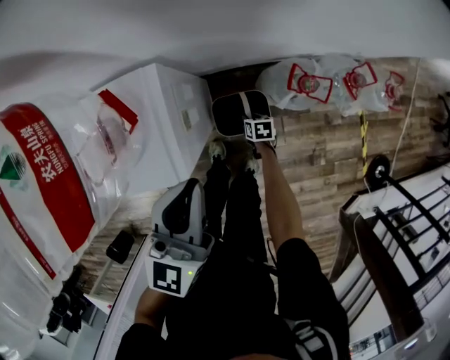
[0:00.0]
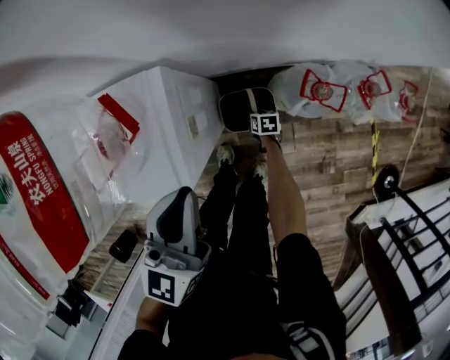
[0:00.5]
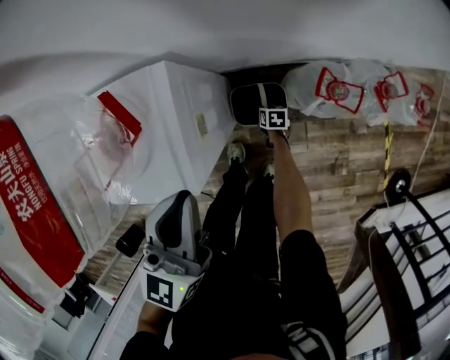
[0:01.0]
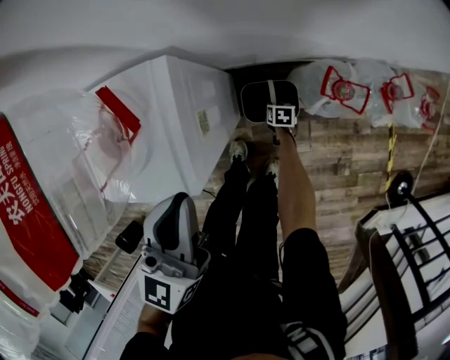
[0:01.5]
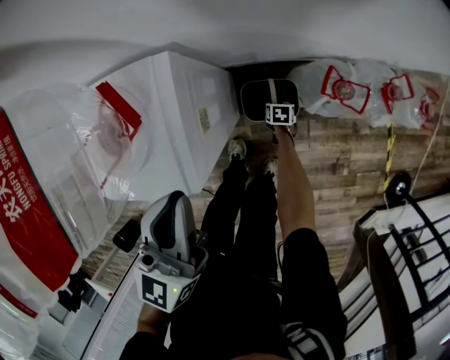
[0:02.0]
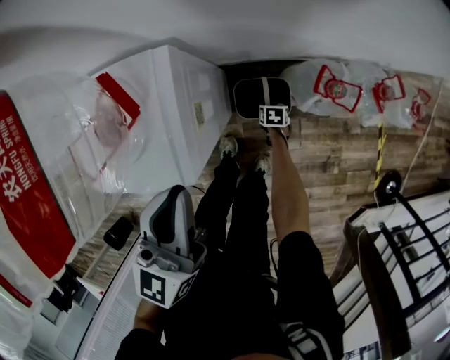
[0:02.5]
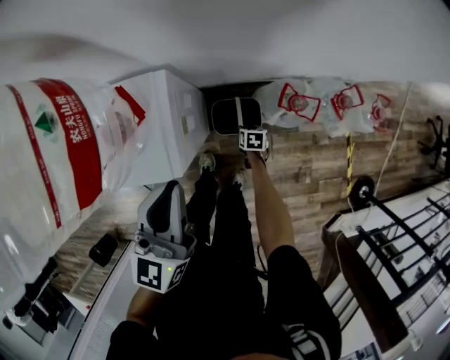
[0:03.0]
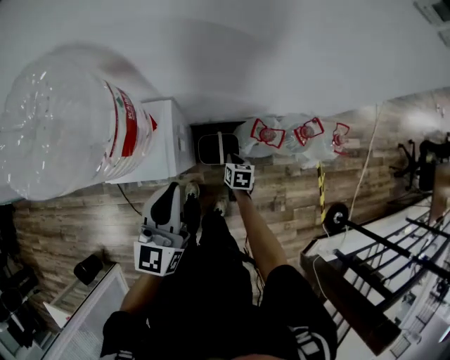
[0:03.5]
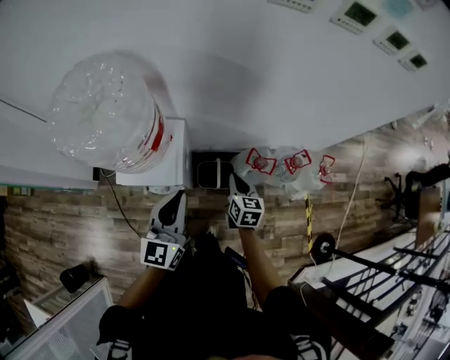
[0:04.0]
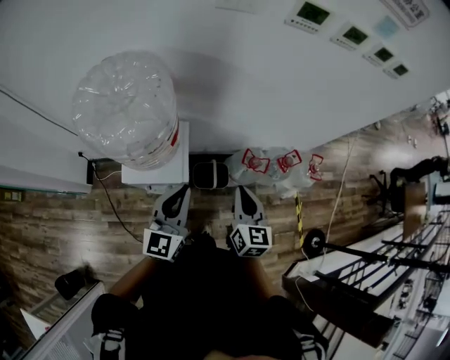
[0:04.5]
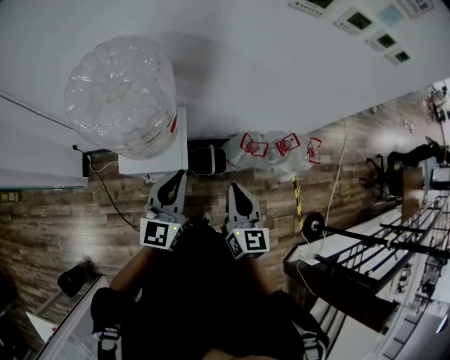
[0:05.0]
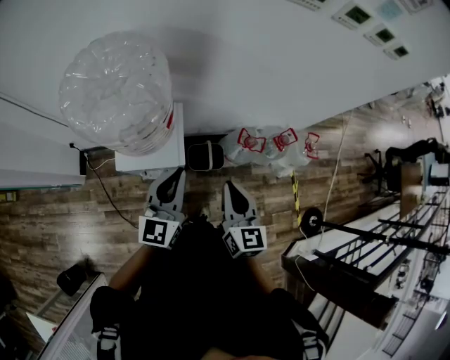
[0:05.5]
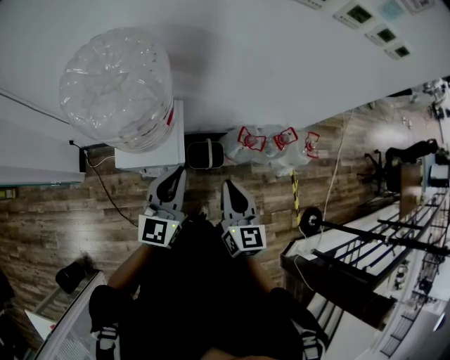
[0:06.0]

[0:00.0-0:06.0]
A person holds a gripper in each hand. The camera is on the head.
0:00.0 to 0:02.0: The right gripper goes approximately 10 cm downward. The left gripper moves some 5 cm.
0:02.0 to 0:04.0: The left gripper moves upward and backward, roughly 20 cm. The right gripper travels upward by some 60 cm, tips its fingers upward by about 40 degrees, and closes.
0:04.0 to 0:06.0: The right gripper moves upward, backward and to the left, some 25 cm, while the left gripper shifts by approximately 5 cm.

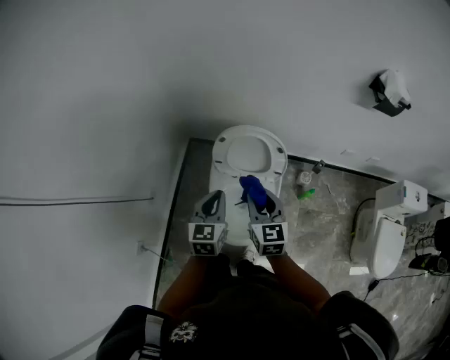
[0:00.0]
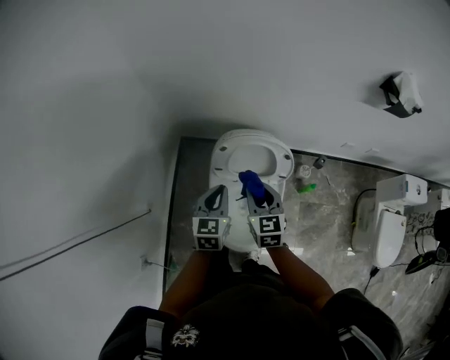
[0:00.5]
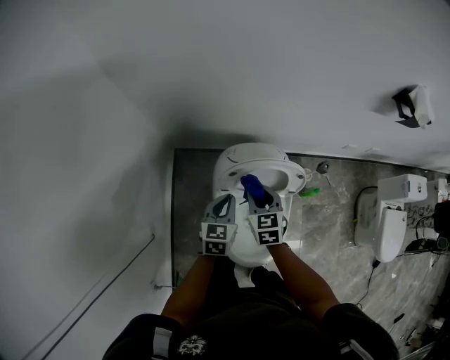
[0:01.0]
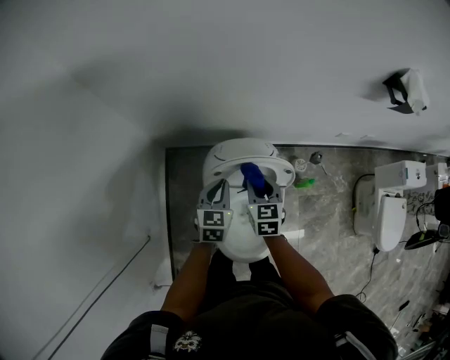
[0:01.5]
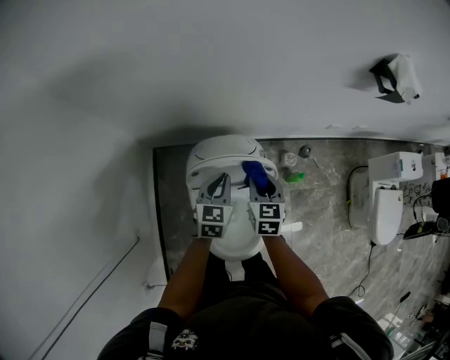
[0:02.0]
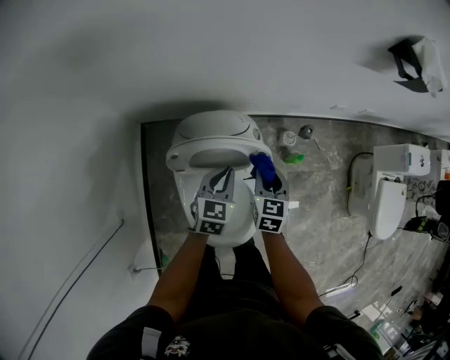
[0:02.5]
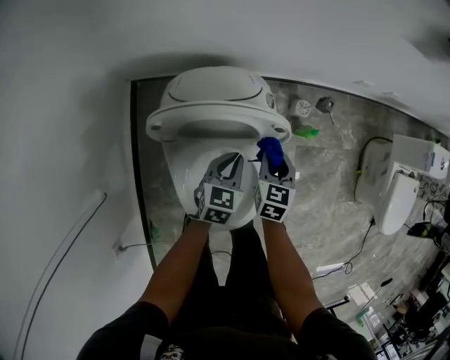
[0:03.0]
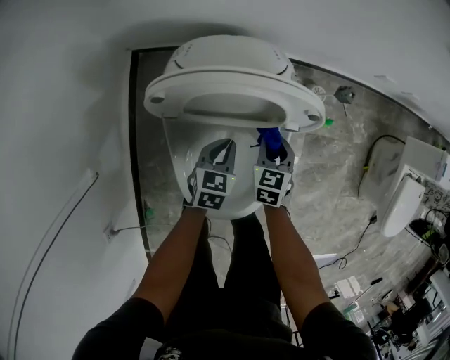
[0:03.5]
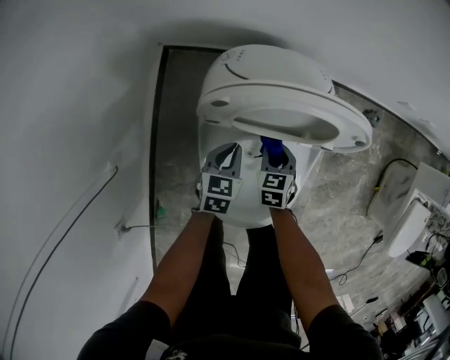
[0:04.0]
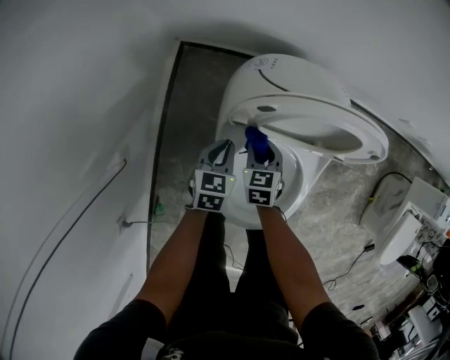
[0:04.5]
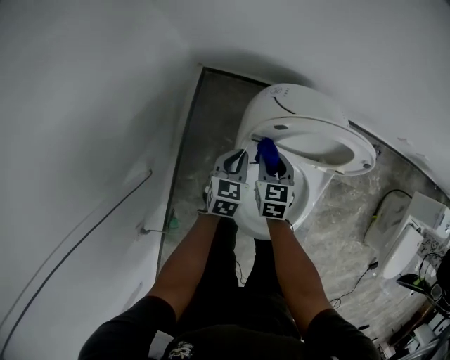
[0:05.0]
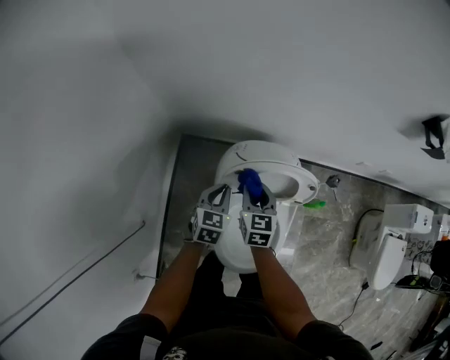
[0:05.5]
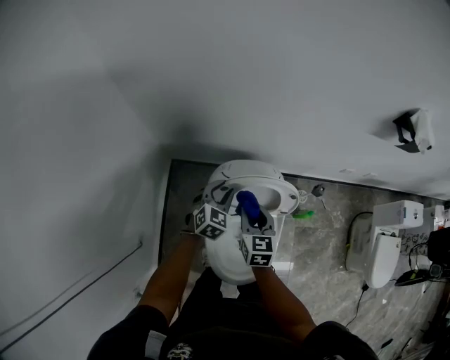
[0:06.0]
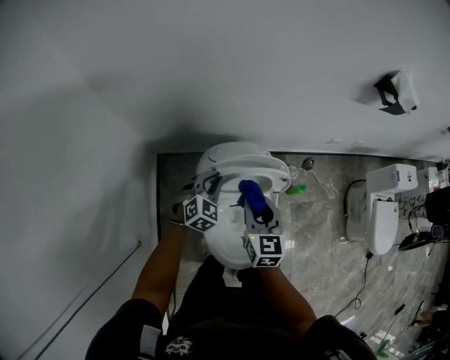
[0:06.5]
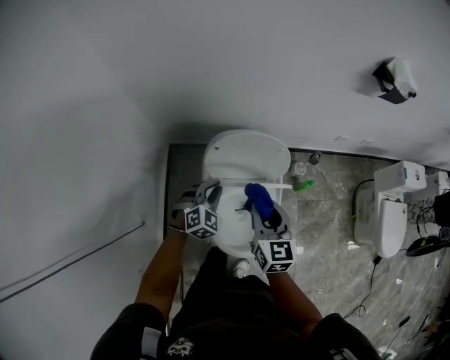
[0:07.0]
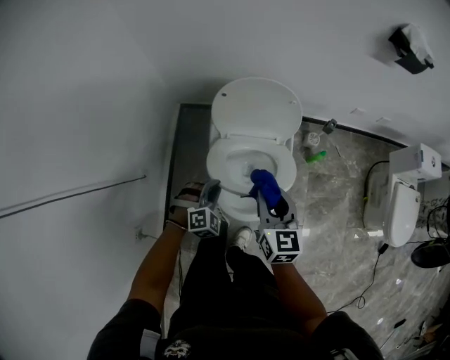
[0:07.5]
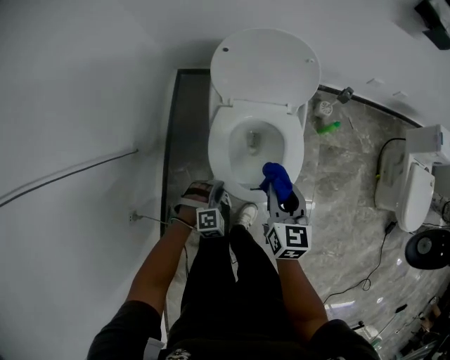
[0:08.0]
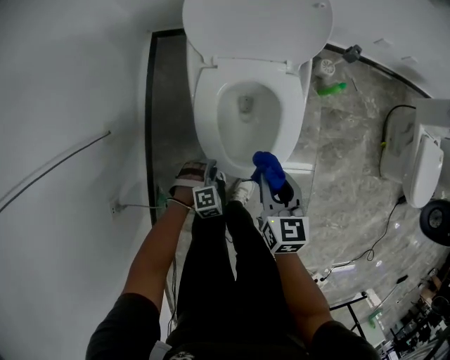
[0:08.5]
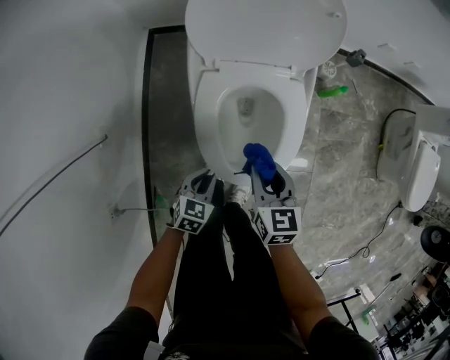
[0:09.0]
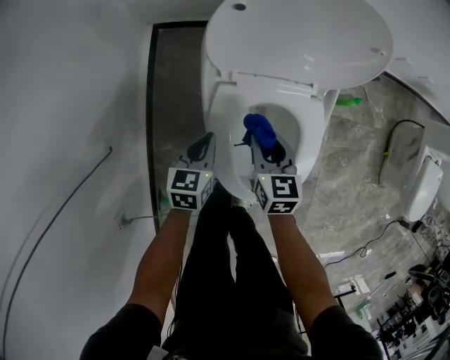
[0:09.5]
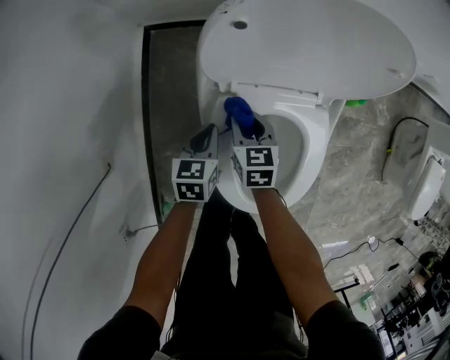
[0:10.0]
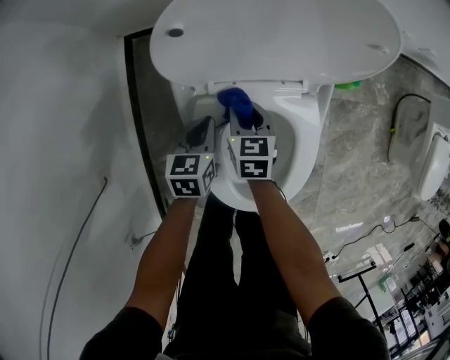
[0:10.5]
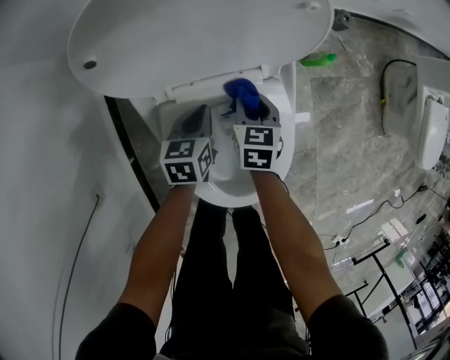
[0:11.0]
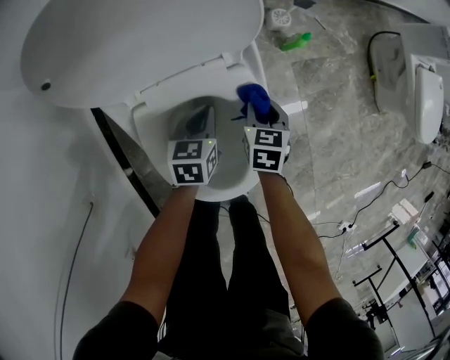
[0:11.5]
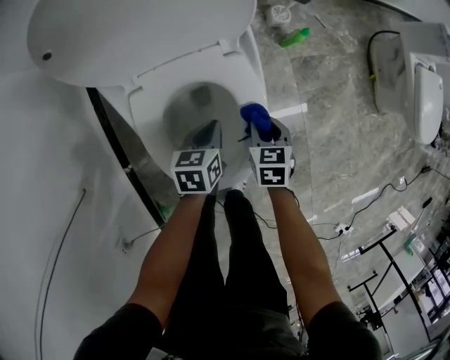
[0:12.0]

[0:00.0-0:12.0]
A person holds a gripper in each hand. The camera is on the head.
0:00.0 to 0:02.0: The two grippers go roughly 25 cm forward and downward. The left gripper swivels approximately 20 degrees, while the right gripper rotates about 30 degrees.
0:02.0 to 0:04.0: The grippers both shift downward by roughly 30 cm. The left gripper changes its angle by roughly 20 degrees. The right gripper changes its angle by approximately 20 degrees.
0:04.0 to 0:06.0: The left gripper goes about 25 cm upward and forward, rotates approximately 40 degrees, and opens. The right gripper is displaced upward by roughly 35 cm, and changes its angle by roughly 30 degrees.
0:06.0 to 0:08.0: The right gripper travels backward by some 30 cm, while the left gripper goes about 50 cm backward and downward, and twists roughly 40 degrees clockwise, seen from behind.
0:08.0 to 0:10.0: The right gripper moves downward, forward and to the left, approximately 40 cm. Meanwhile the left gripper travels forward by some 25 cm, twists some 80 degrees counterclockwise, seen from behind, and closes up.
0:10.0 to 0:12.0: The right gripper moves approximately 30 cm, and changes its angle by about 20 degrees. Meanwhile the left gripper changes place by about 25 cm.

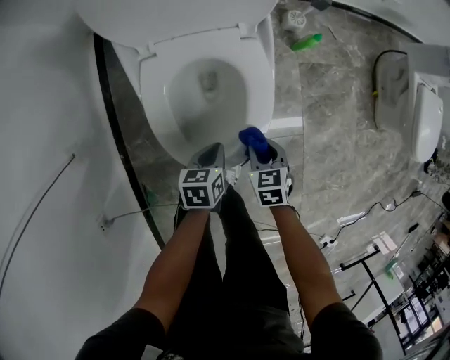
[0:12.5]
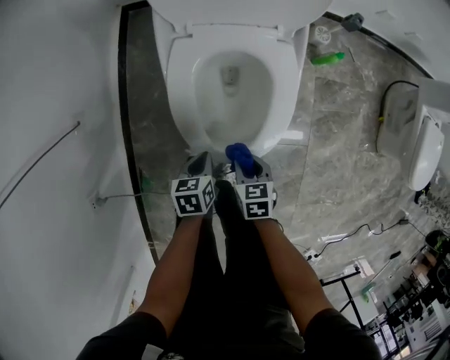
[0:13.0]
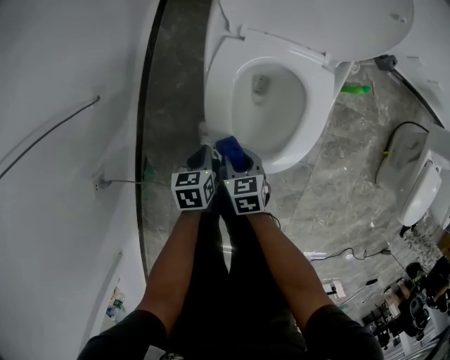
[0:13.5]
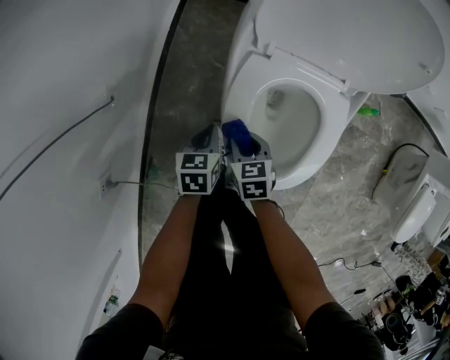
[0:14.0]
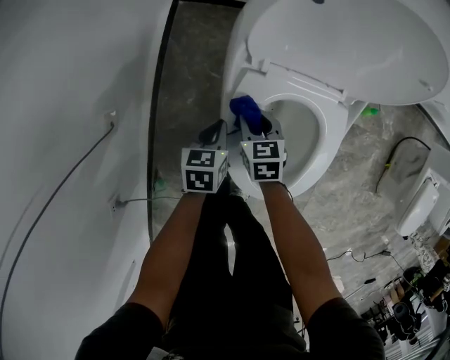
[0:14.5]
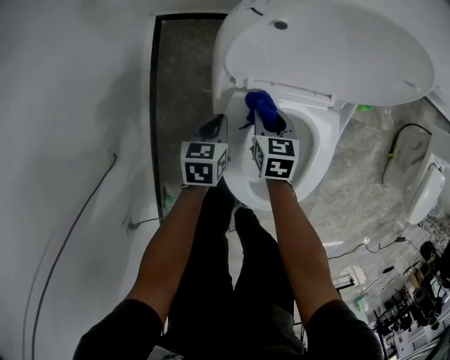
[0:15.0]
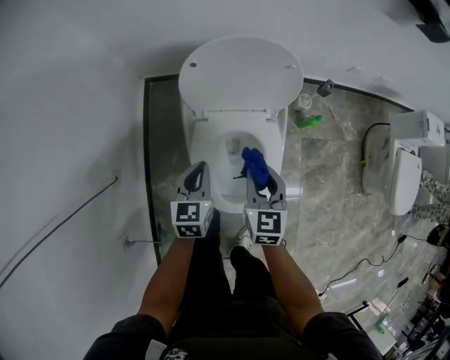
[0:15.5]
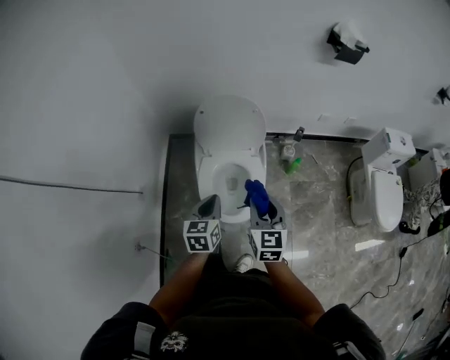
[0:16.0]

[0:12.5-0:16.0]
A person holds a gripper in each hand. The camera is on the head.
0:12.5 to 0:14.5: The left gripper ends up approximately 25 cm from where it was. Meanwhile the right gripper shifts by approximately 30 cm.
0:14.5 to 0:16.0: The right gripper is displaced upward, to the right and backward by about 60 cm, and angles its fingers upward, by approximately 30 degrees; the left gripper shifts about 50 cm upward, backward and to the right, and turns by about 30 degrees.

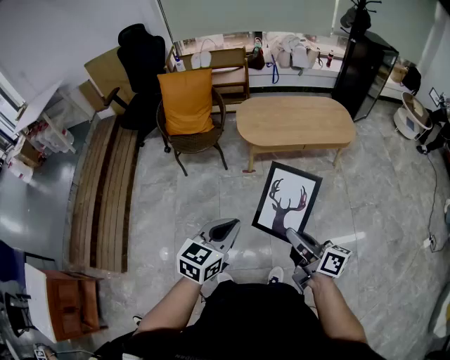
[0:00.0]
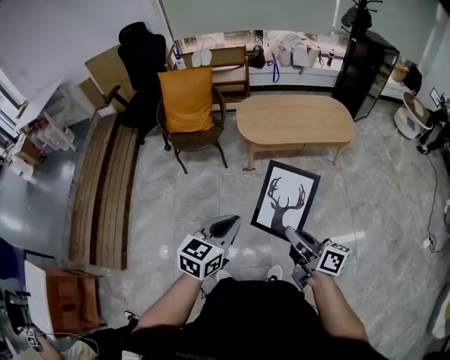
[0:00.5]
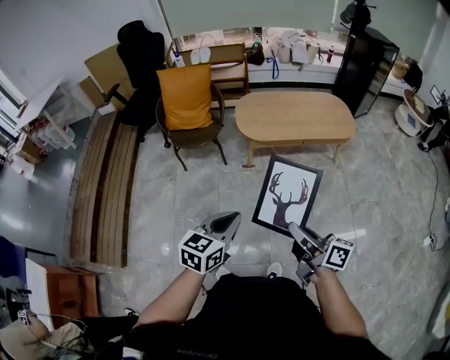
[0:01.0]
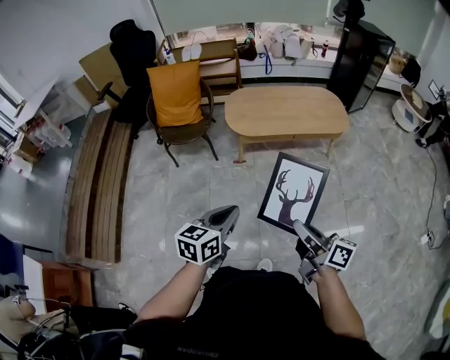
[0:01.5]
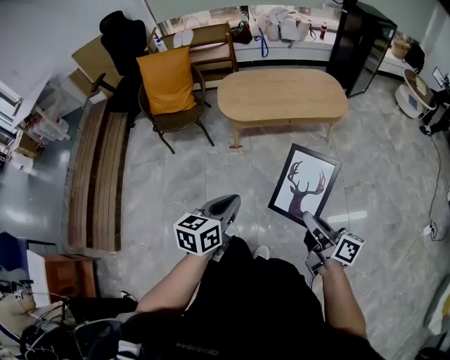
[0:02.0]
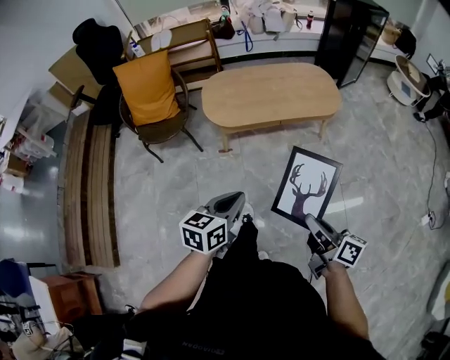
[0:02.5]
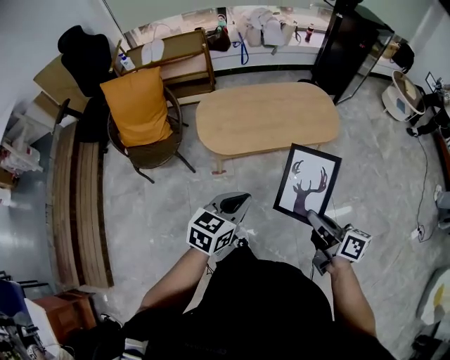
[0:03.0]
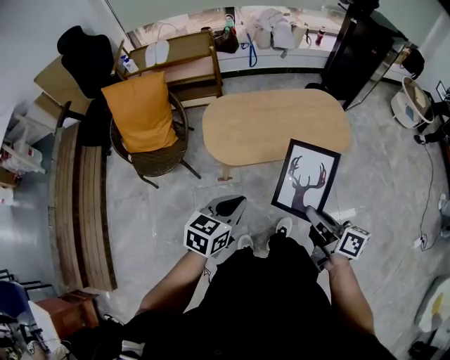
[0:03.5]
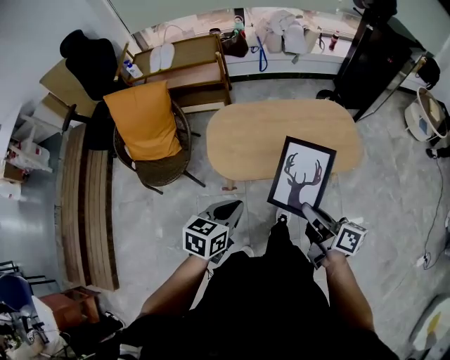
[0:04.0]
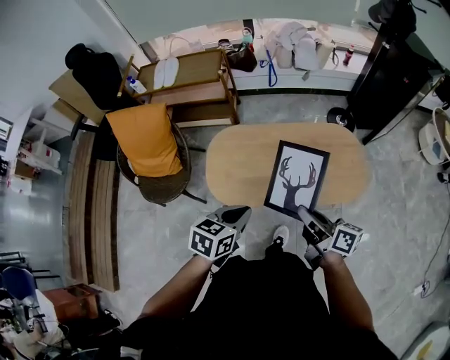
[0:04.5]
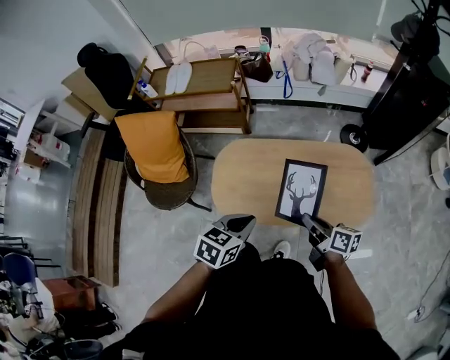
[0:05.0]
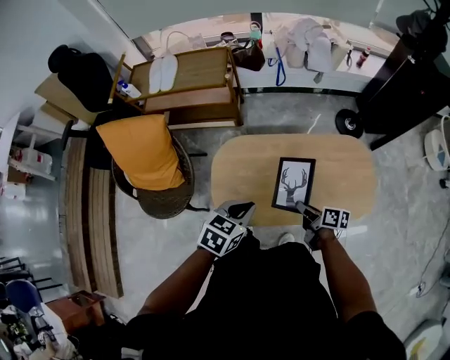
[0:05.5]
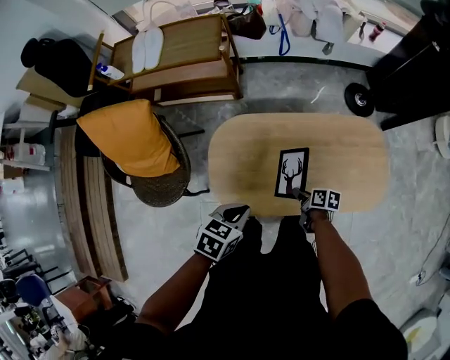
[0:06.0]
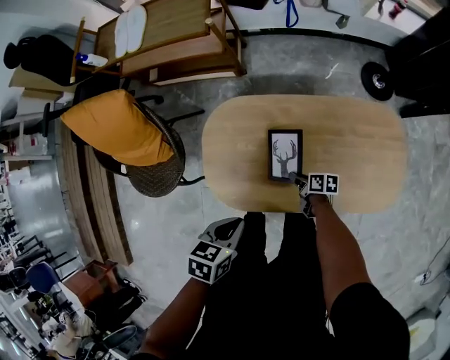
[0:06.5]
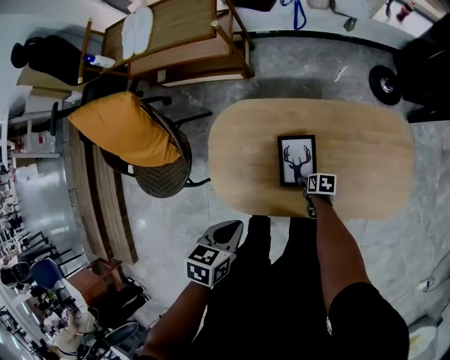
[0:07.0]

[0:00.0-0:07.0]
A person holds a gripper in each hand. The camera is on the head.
0:00.0 to 0:02.0: The grippers both shift to the right by about 20 cm.
0:02.0 to 0:03.5: Both grippers travel together forward, approximately 35 cm.
0:03.5 to 0:05.0: Both grippers move forward, approximately 30 cm.
0:05.0 to 0:07.0: The right gripper travels downward by about 40 cm, tips its fingers downward by roughly 40 degrees, and opens up. The left gripper moves downward, to the left and forward, roughly 20 cm, and turns by some 20 degrees.
